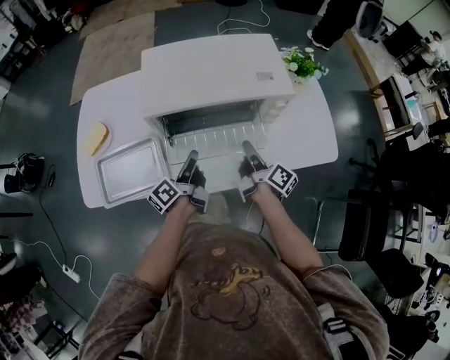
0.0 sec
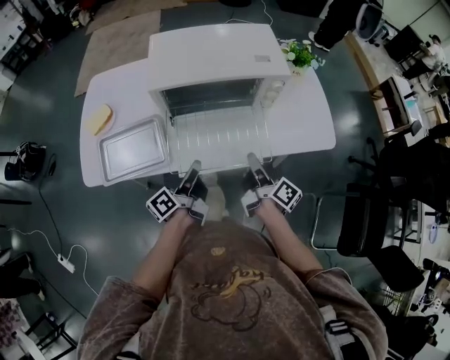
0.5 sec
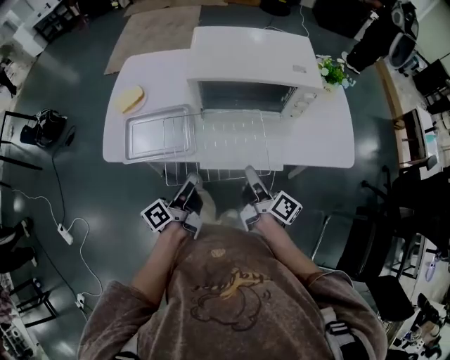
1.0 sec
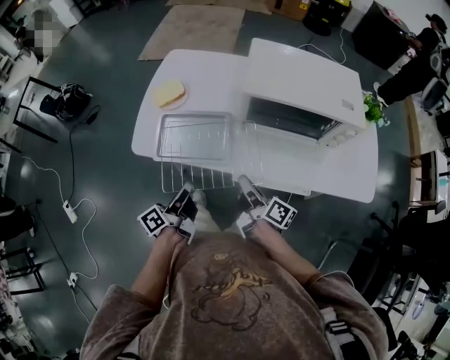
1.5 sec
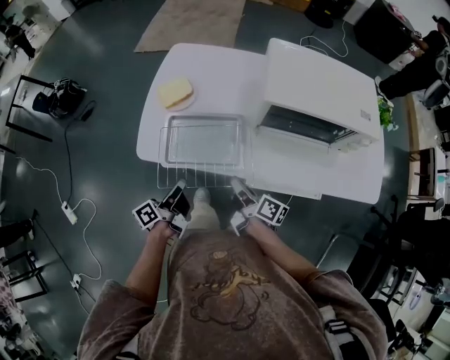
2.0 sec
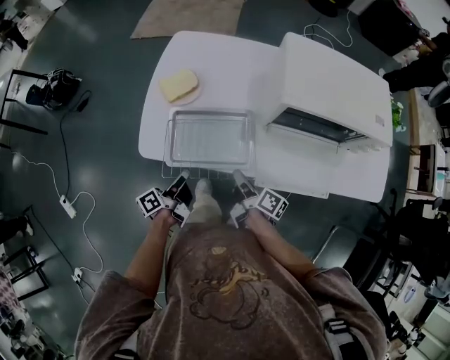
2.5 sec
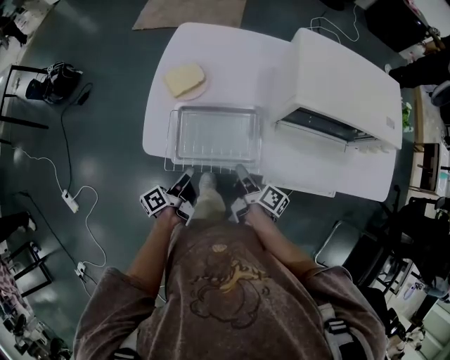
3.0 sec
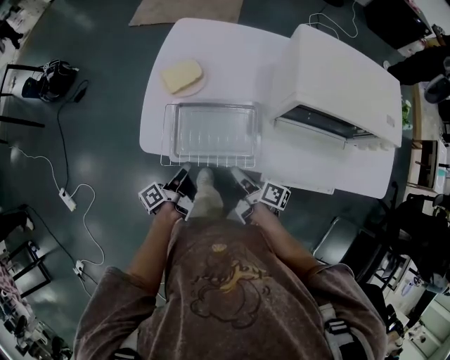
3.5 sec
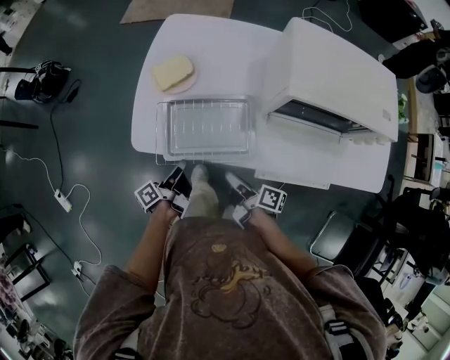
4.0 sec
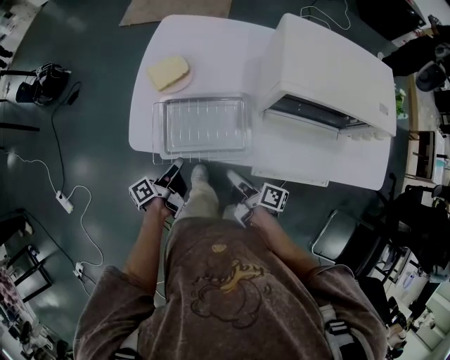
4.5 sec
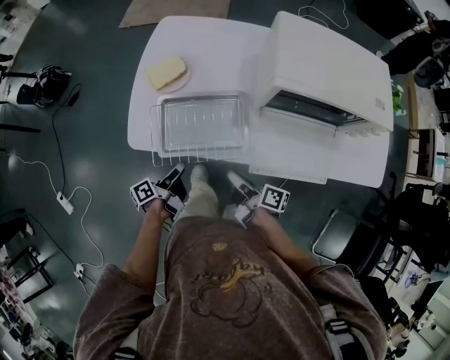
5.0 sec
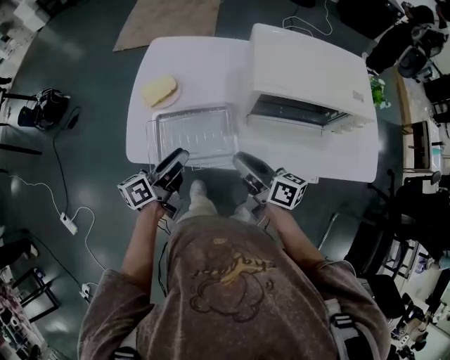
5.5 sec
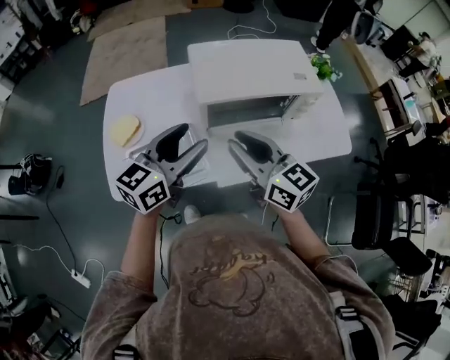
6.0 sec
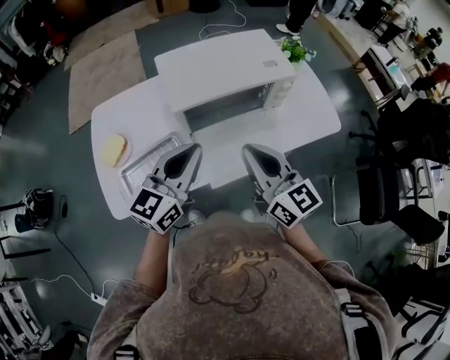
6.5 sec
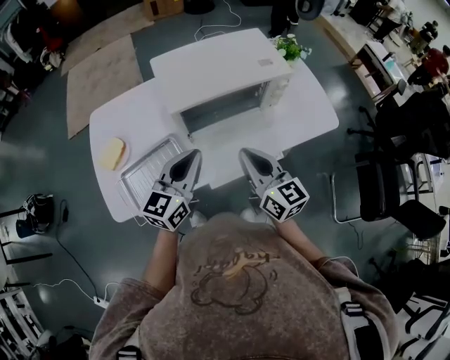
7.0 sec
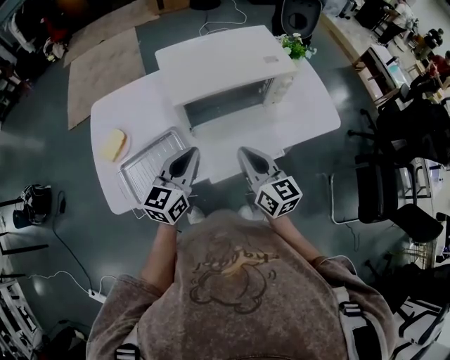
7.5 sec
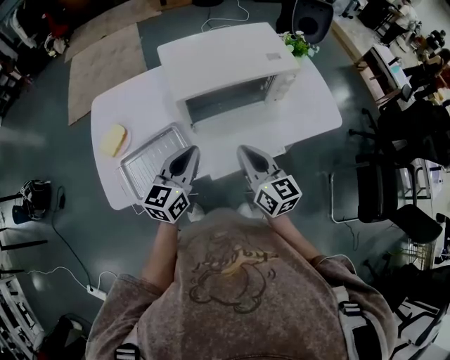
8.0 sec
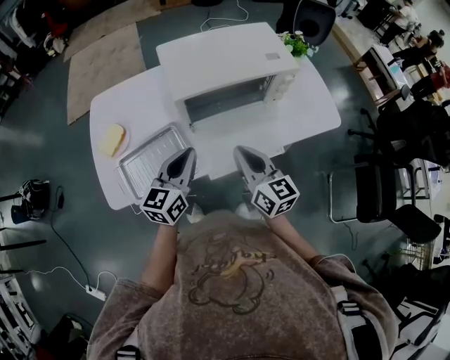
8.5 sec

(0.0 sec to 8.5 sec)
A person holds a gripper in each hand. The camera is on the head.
0.0 sec - 2.0 sec: The left gripper shifts roughly 35 cm to the left and backward, while the right gripper heads to the left, covering roughly 30 cm, and rotates roughly 30 degrees.
2.0 sec - 4.0 sec: Both grippers travel together downward, about 10 cm. The left gripper opens, then closes again.
4.0 sec - 6.5 sec: Both grippers travel together upward, some 35 cm. The left gripper rolls clockwise, seen from behind, by roughly 80 degrees, and opens, then closes again, while the right gripper rolls counterclockwise, seen from behind, by roughly 60 degrees.
6.5 sec - 8.5 sec: Both grippers move downward, roughly 10 cm.

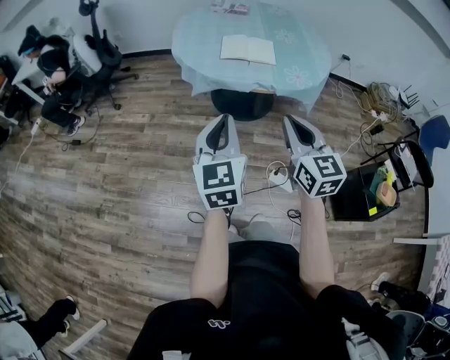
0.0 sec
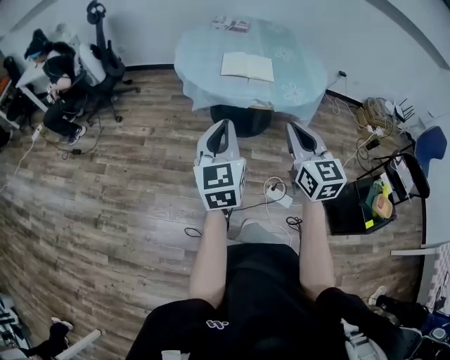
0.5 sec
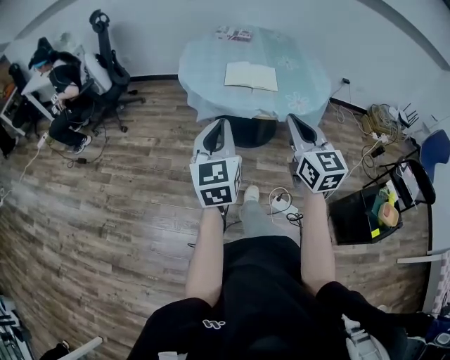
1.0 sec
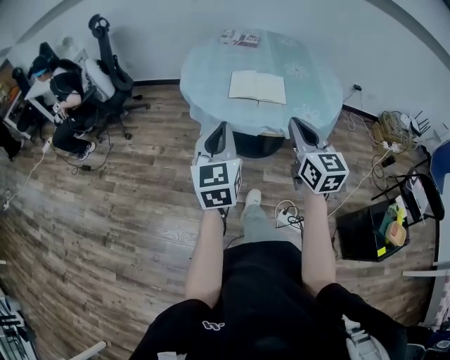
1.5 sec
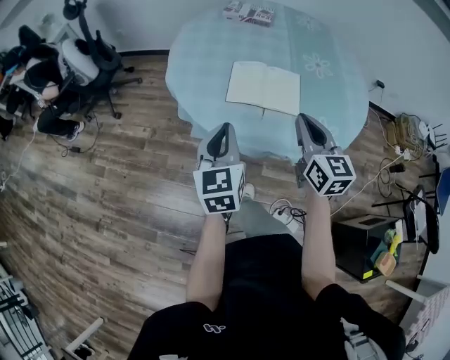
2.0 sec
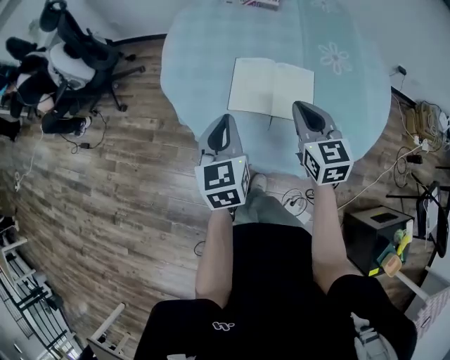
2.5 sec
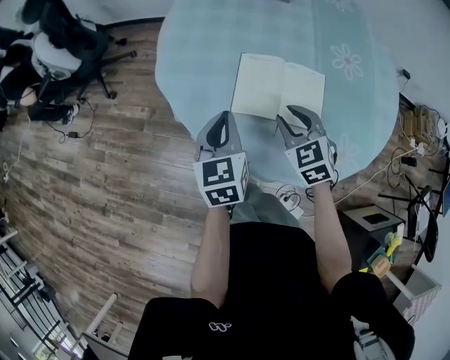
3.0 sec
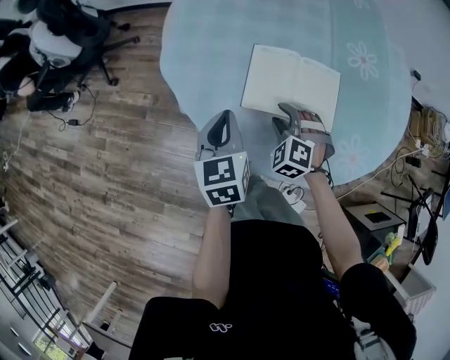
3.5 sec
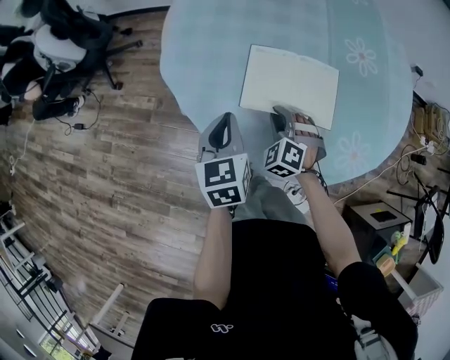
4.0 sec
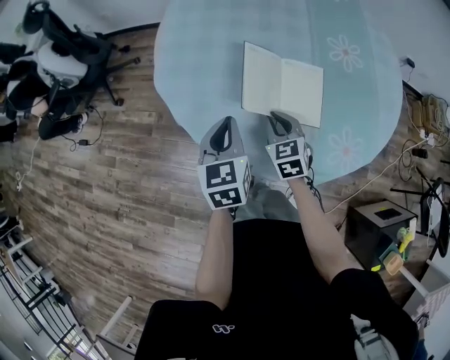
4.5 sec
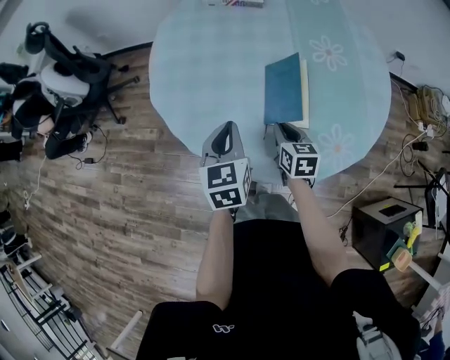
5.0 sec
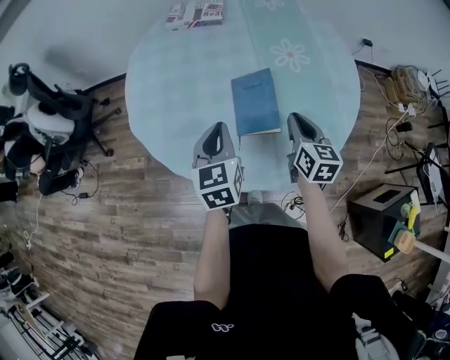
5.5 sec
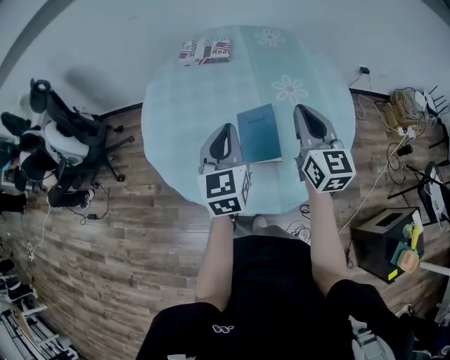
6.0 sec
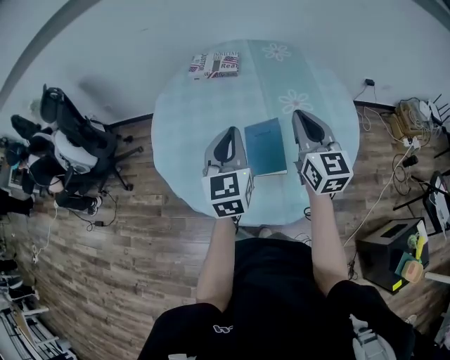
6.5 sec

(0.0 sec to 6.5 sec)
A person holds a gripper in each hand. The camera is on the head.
0.0 sec - 2.0 sec: Both grippers move forward, about 40 cm.
2.0 sec - 4.5 sec: The left gripper goes roughly 20 cm forward and downward, while the right gripper travels downward and forward by roughly 25 cm, swivels approximately 30 degrees, and opens, then closes once more.
4.5 sec - 6.5 sec: The left gripper is displaced upward and to the right by approximately 20 cm, and changes its angle by approximately 30 degrees. Meanwhile the right gripper shifts approximately 35 cm upward and to the right, and tilts its fingers approximately 40 degrees upward.

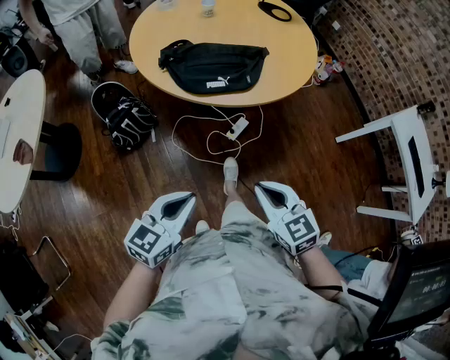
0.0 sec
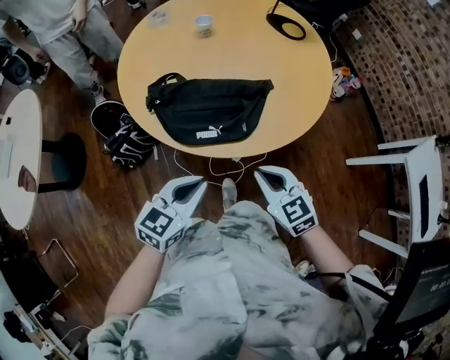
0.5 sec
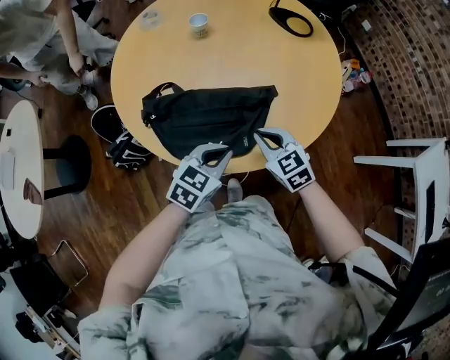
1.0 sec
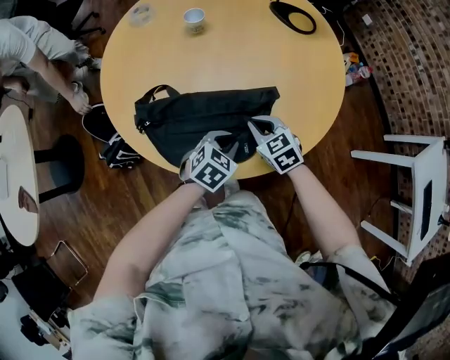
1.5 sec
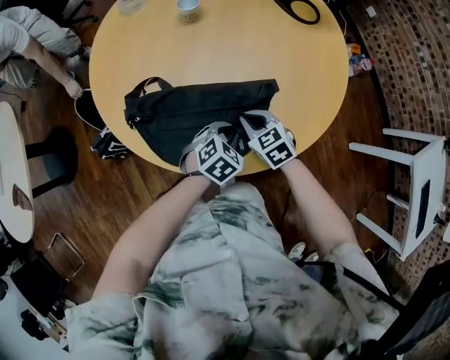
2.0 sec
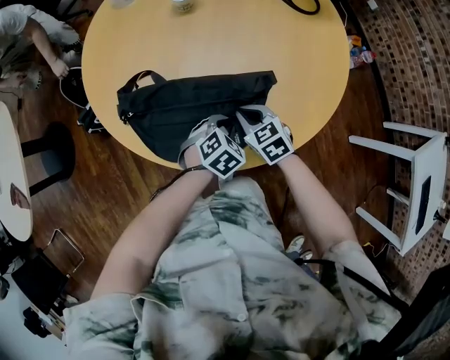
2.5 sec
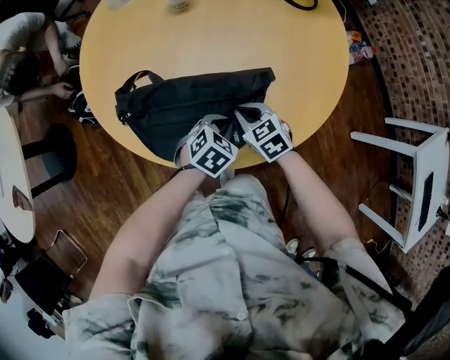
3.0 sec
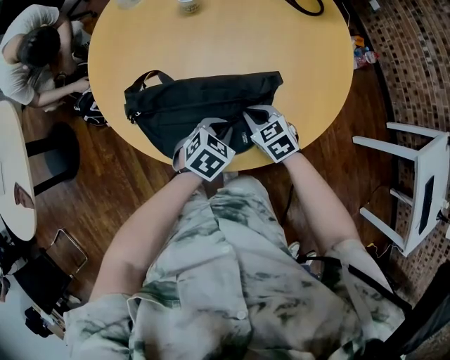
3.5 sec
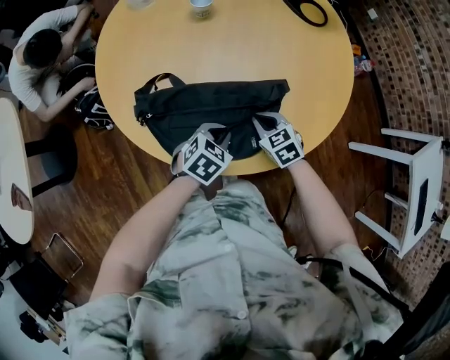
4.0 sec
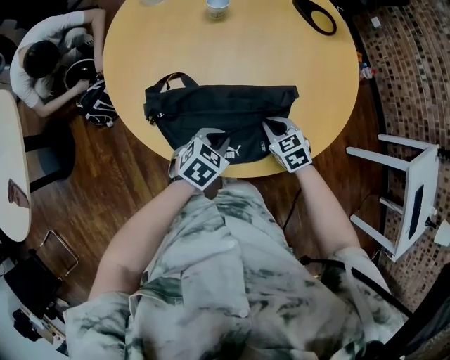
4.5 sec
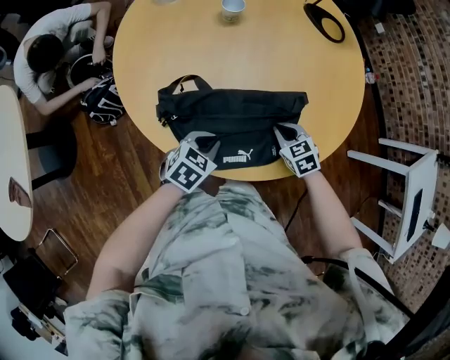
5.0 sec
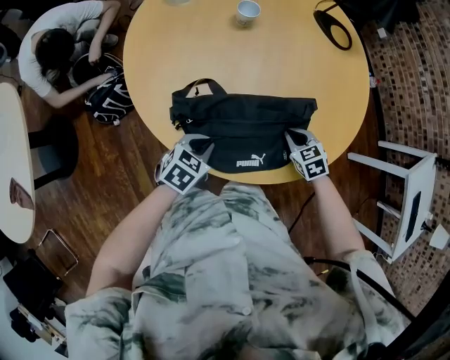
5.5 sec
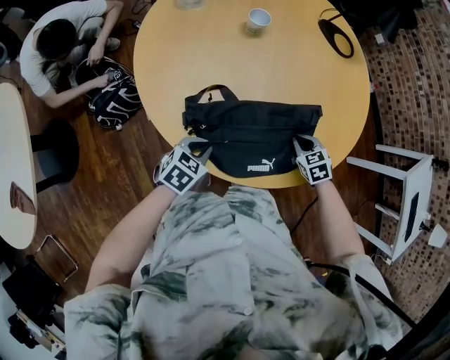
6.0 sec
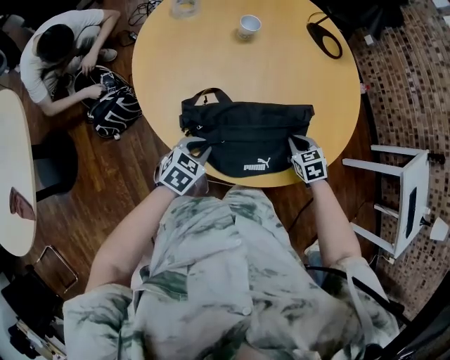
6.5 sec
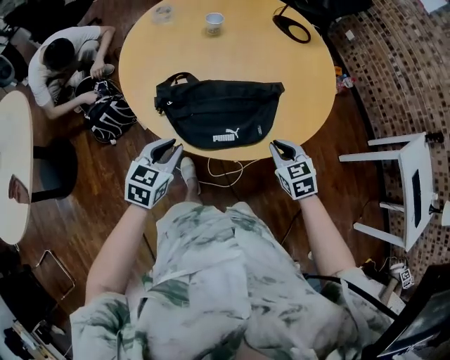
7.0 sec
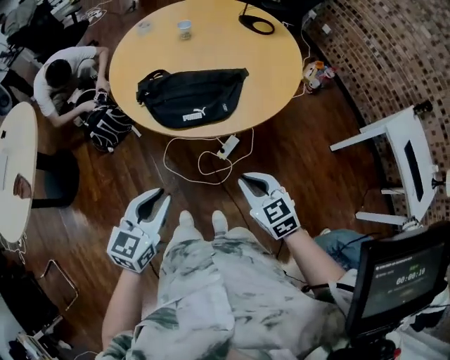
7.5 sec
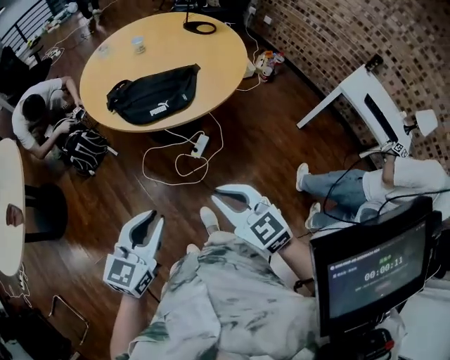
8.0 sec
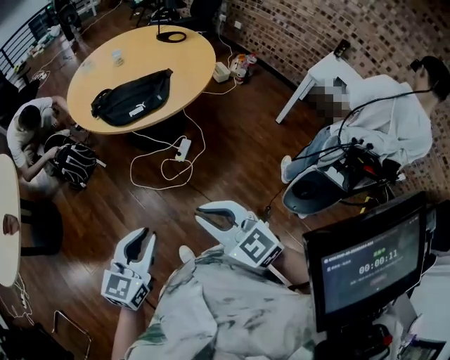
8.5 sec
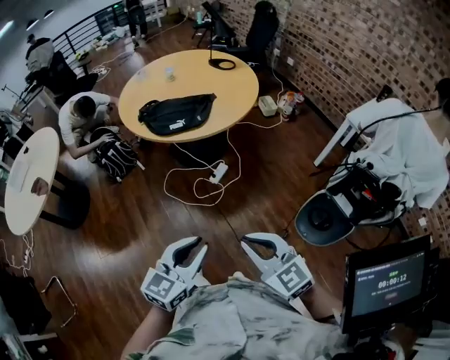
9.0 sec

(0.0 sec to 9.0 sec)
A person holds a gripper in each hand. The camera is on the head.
0.0 sec - 2.0 sec: The pair of grippers is taken forward, about 50 cm. Both grippers travel together downward, about 20 cm. The left gripper points its fingers roughly 40 degrees further downward. The right gripper swivels about 20 degrees.
2.0 sec - 4.5 sec: The left gripper moves to the left, roughly 10 cm.
4.5 sec - 7.0 sec: The right gripper travels backward and upward by about 15 cm, while the left gripper travels to the left, backward and upward by about 20 cm, and swivels about 20 degrees.
7.0 sec - 9.0 sec: Both grippers are carried backward, approximately 60 cm. The right gripper shifts approximately 25 cm upward, and changes its angle by approximately 30 degrees. The left gripper changes its angle by approximately 20 degrees.

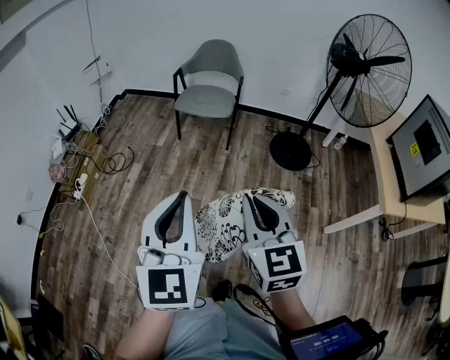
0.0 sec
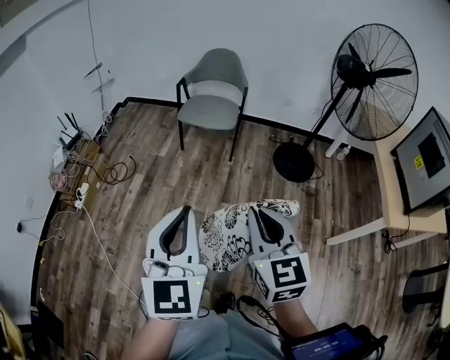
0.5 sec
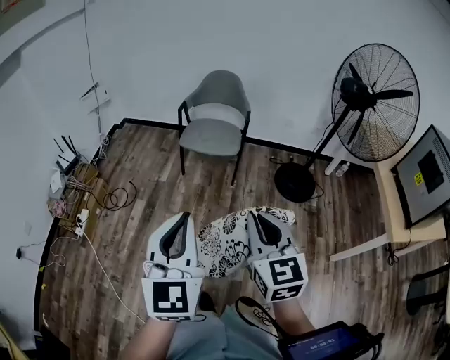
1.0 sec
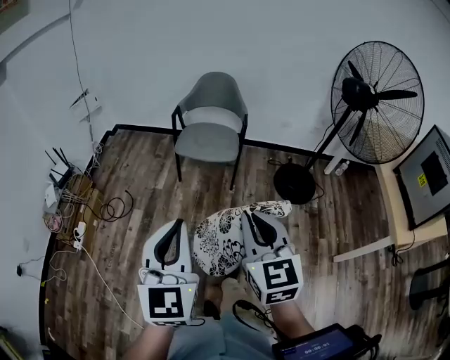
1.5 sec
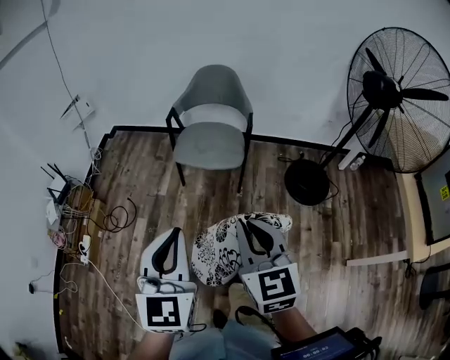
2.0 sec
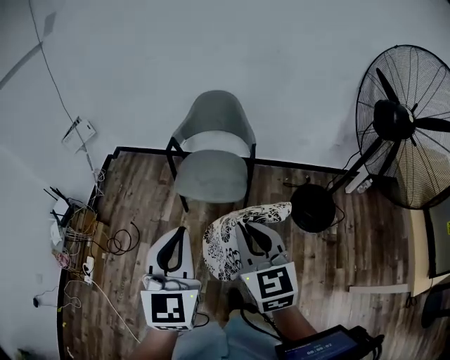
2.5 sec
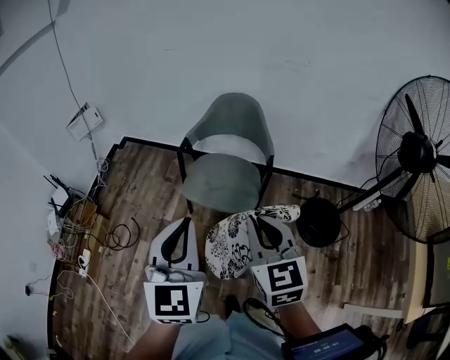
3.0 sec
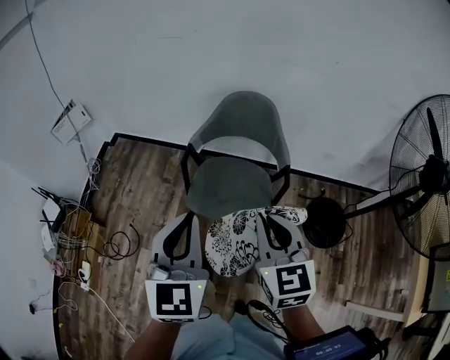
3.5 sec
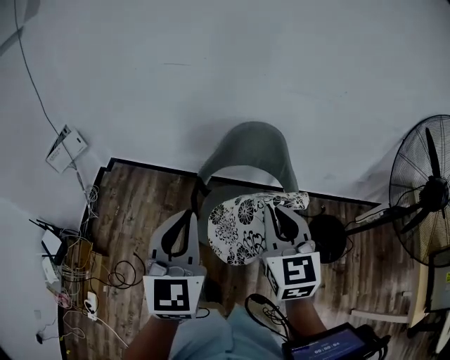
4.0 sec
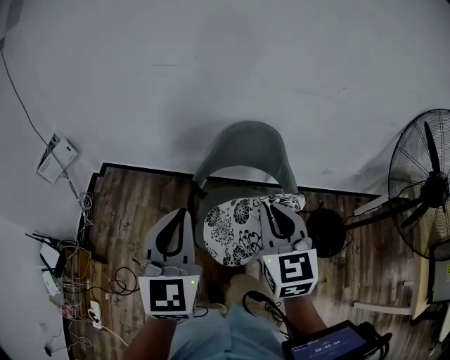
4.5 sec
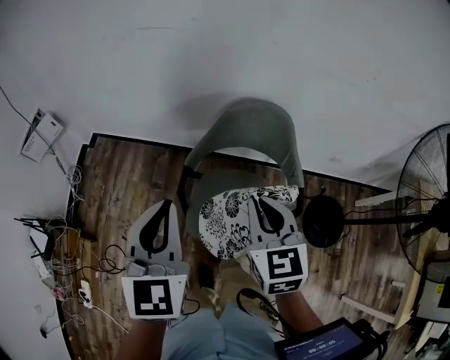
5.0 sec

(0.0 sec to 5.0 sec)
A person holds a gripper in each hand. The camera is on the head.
0.0 sec - 2.5 sec: The pair of grippers is taken forward, some 50 cm.
2.5 sec - 5.0 sec: The pair of grippers is taken forward, about 50 cm.
